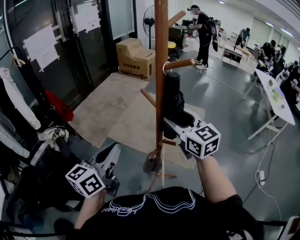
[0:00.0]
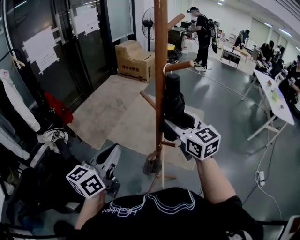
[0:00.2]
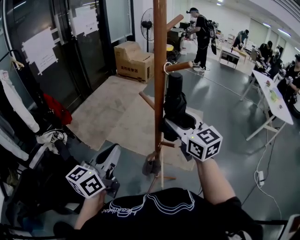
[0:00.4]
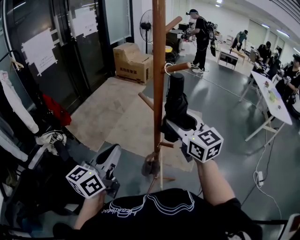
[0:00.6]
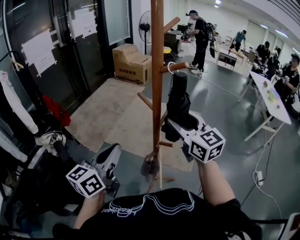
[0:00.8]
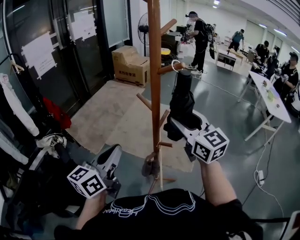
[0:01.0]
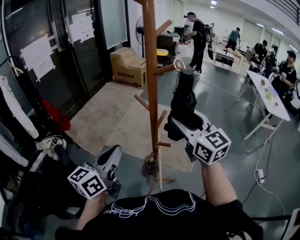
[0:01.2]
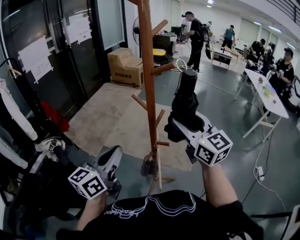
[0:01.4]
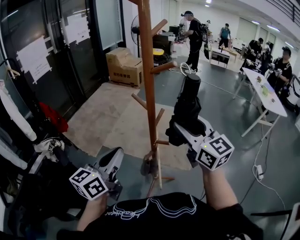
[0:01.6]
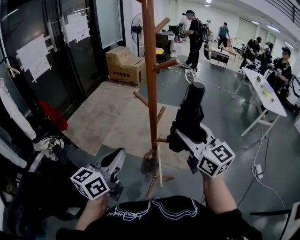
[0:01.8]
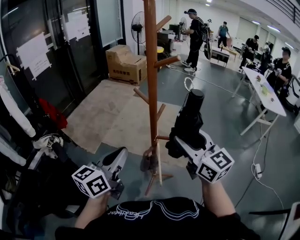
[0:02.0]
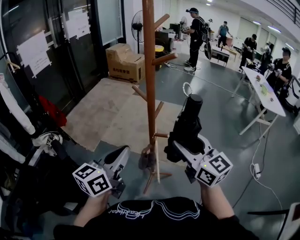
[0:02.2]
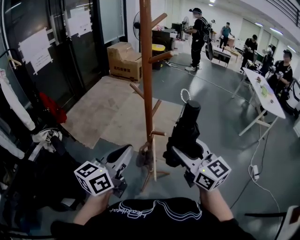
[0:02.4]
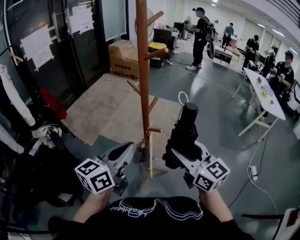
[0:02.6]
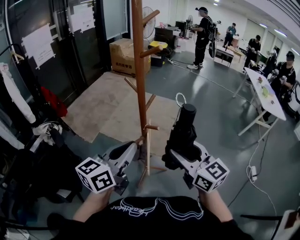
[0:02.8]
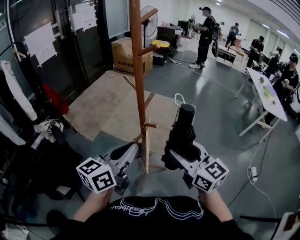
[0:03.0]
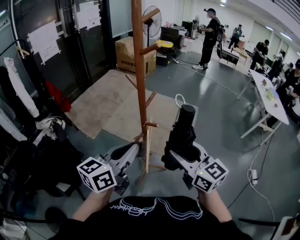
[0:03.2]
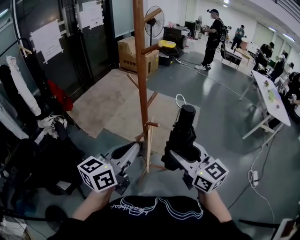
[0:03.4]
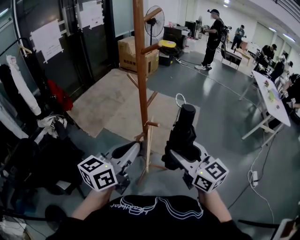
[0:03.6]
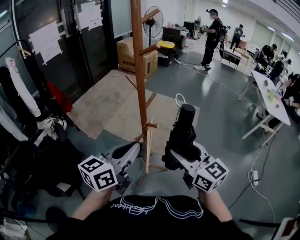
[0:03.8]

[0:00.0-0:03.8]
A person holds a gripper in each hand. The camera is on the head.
0.0 to 1.2 s: The right gripper shifts some 5 cm upward.
1.2 to 2.6 s: The left gripper shifts roughly 10 cm to the right and backward. Meanwhile the right gripper heads backward and downward, covering about 15 cm.
2.6 to 3.8 s: The grippers make only small movements.

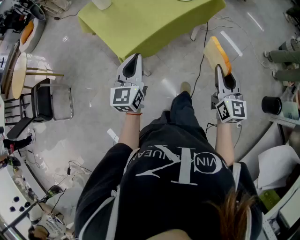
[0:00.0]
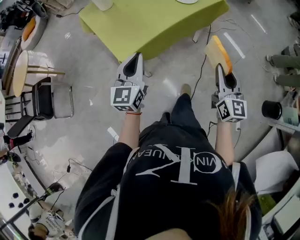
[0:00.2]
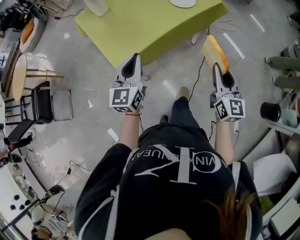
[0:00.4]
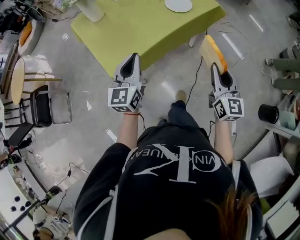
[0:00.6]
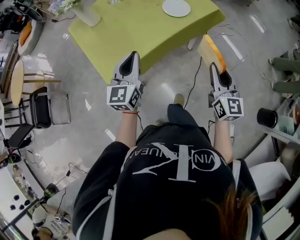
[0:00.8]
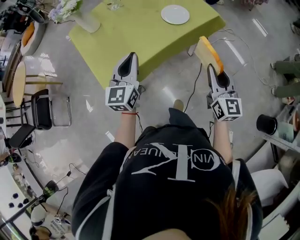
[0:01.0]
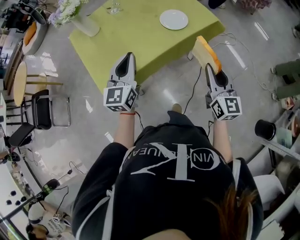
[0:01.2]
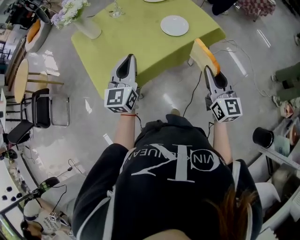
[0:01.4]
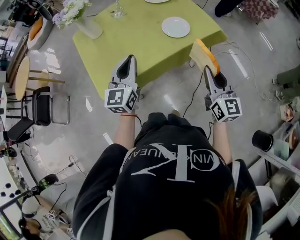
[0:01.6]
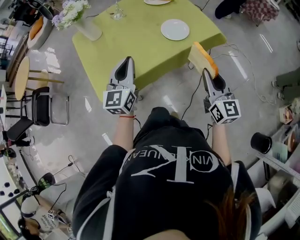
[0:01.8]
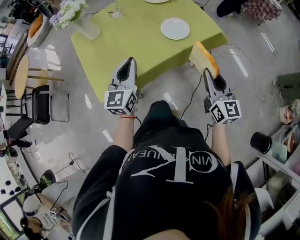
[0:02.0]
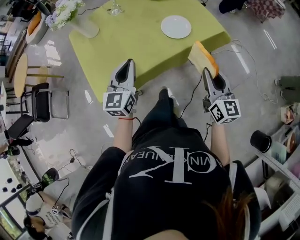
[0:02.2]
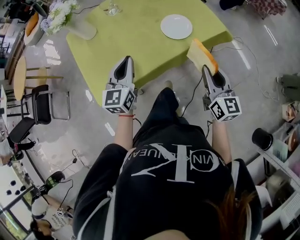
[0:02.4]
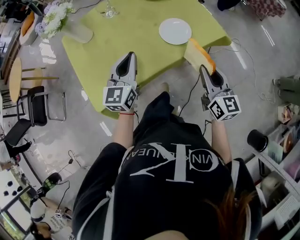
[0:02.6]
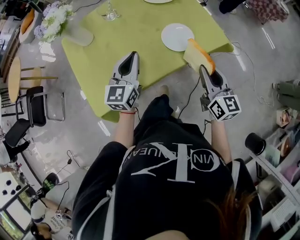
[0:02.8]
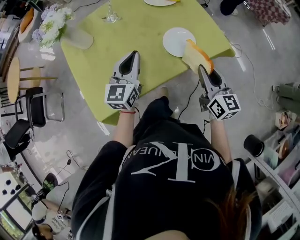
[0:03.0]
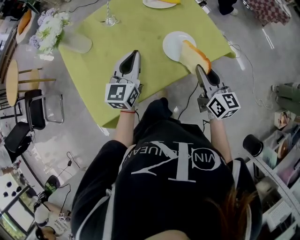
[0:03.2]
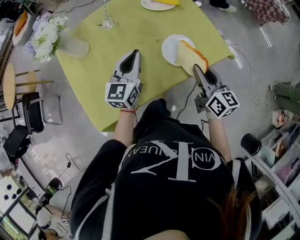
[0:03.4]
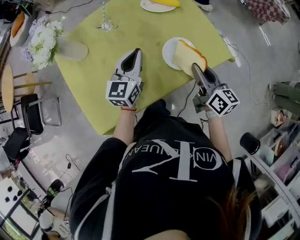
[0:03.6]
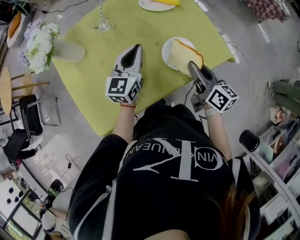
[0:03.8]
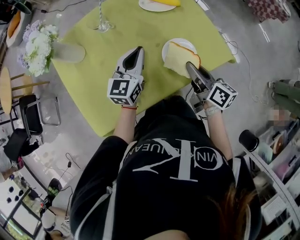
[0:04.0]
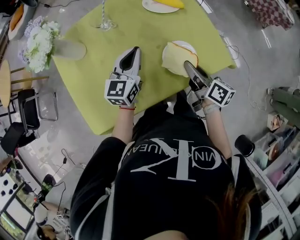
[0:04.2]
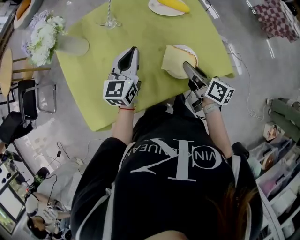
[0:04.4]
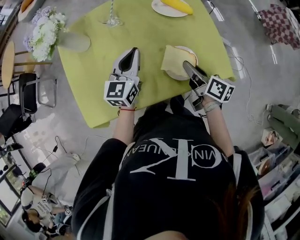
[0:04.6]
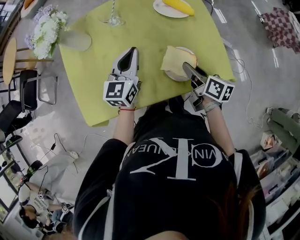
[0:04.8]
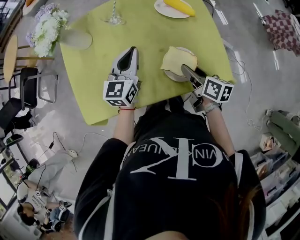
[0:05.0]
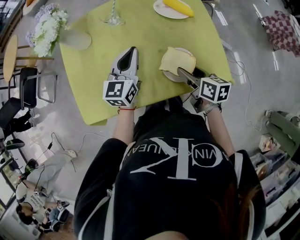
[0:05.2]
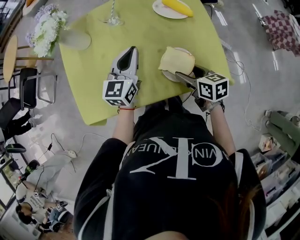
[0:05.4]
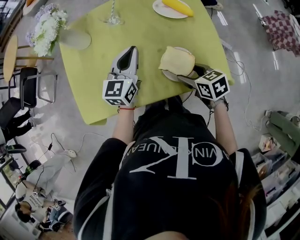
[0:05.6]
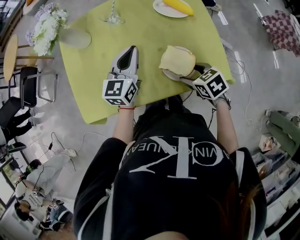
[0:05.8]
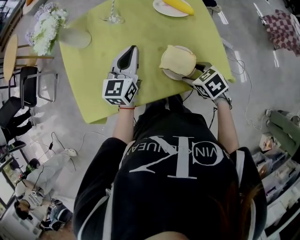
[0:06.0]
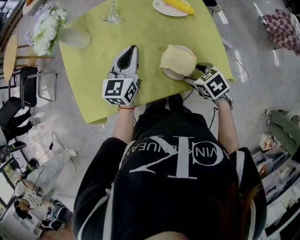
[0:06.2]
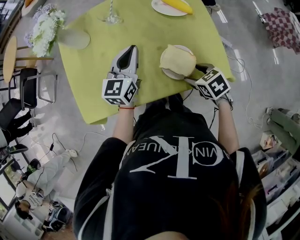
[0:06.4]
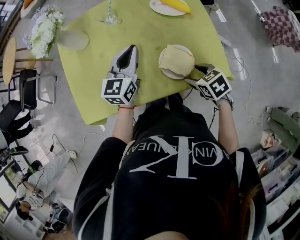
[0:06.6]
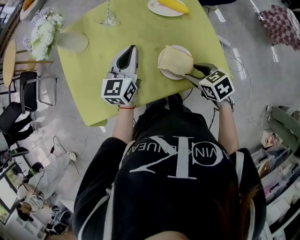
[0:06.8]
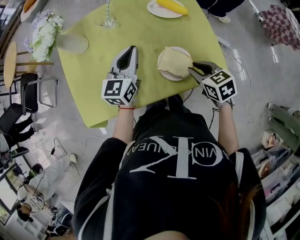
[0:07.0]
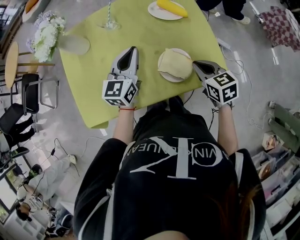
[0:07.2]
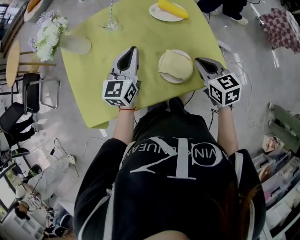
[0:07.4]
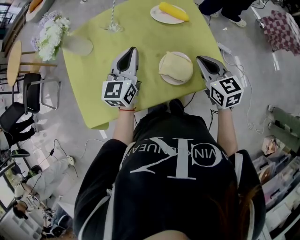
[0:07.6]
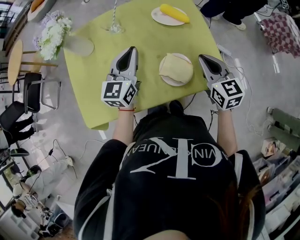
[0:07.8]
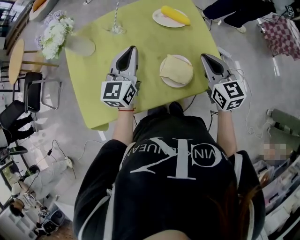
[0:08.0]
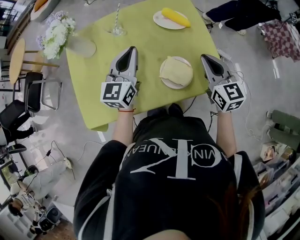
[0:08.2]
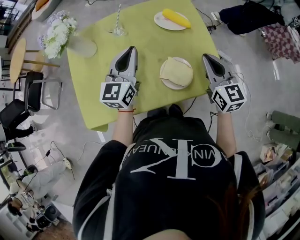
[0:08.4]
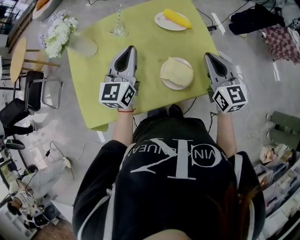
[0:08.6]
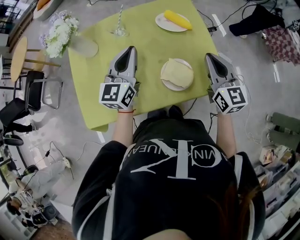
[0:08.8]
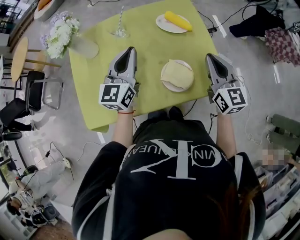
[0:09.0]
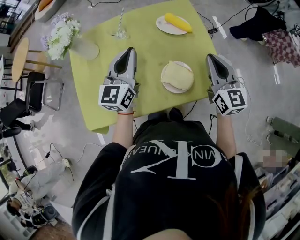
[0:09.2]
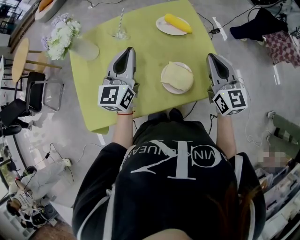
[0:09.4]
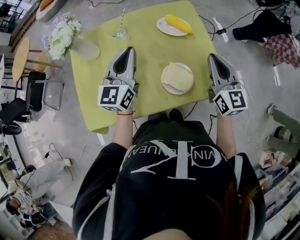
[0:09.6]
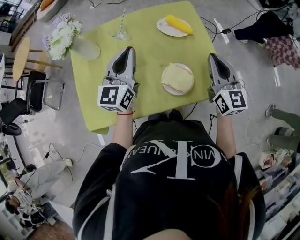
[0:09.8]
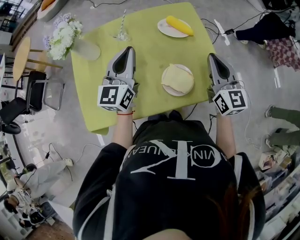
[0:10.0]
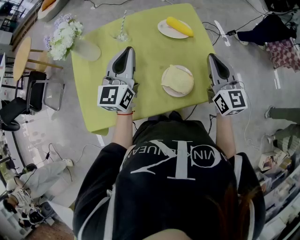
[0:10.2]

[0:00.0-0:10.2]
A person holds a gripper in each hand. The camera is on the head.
0.0 to 1.4 s: Both grippers move forward, about 25 cm.
1.4 to 3.0 s: The two grippers go about 15 cm forward.
3.0 to 4.4 s: The right gripper moves forward and downward, roughly 15 cm, and swivels some 40 degrees; the left gripper moves forward, about 10 cm.
4.4 to 5.8 s: The right gripper changes place by some 5 cm, tilts its fingers roughly 40 degrees downward, and opens its fingers.
5.8 to 7.2 s: The right gripper moves upward, about 5 cm, changes its angle by roughly 20 degrees, and closes up.
7.2 to 8.8 s: The left gripper heads upward, covering some 5 cm, while the right gripper heads upward, covering about 10 cm, and angles its fingers upward, by approximately 30 degrees.
8.8 to 10.2 s: There are only small adjustments of the grippers.

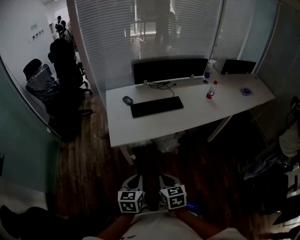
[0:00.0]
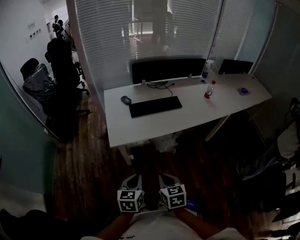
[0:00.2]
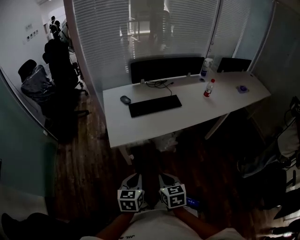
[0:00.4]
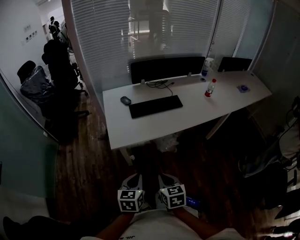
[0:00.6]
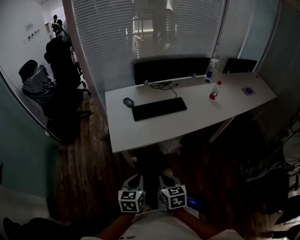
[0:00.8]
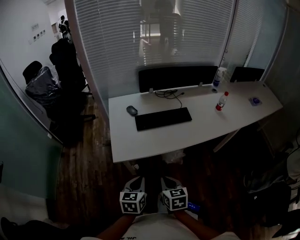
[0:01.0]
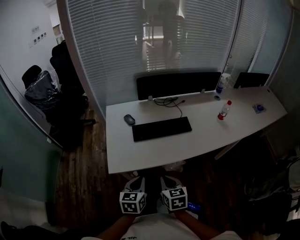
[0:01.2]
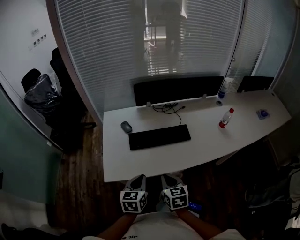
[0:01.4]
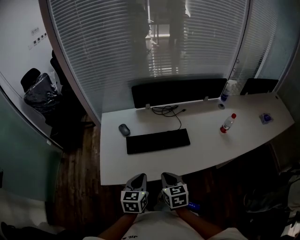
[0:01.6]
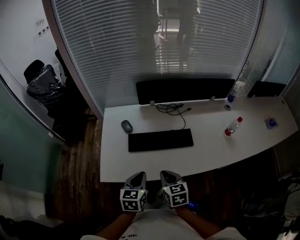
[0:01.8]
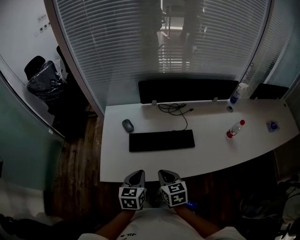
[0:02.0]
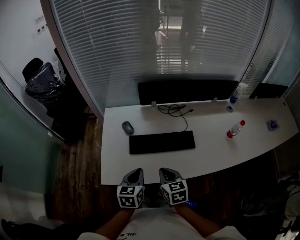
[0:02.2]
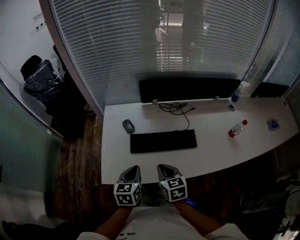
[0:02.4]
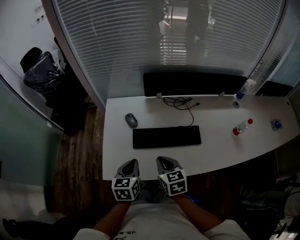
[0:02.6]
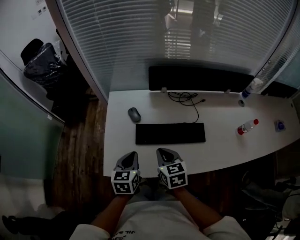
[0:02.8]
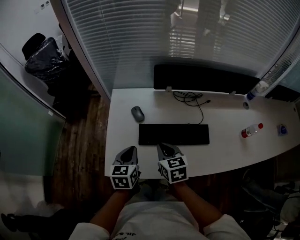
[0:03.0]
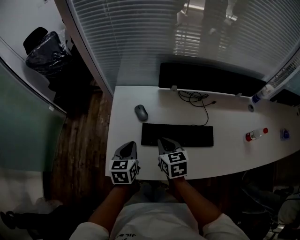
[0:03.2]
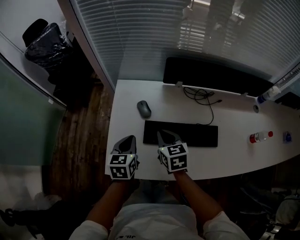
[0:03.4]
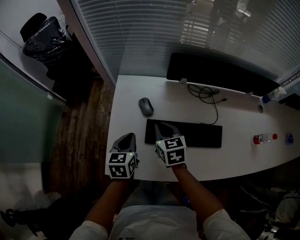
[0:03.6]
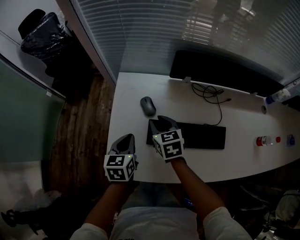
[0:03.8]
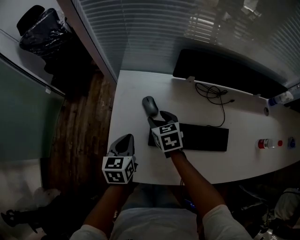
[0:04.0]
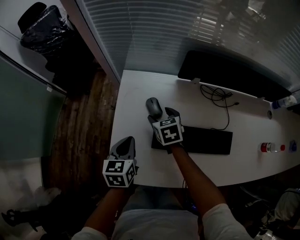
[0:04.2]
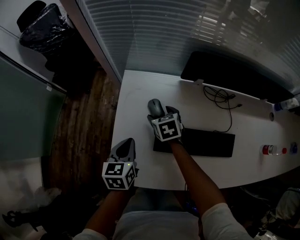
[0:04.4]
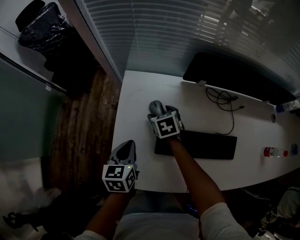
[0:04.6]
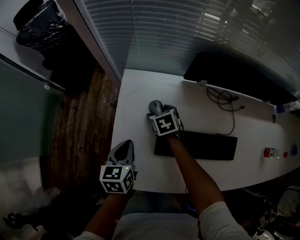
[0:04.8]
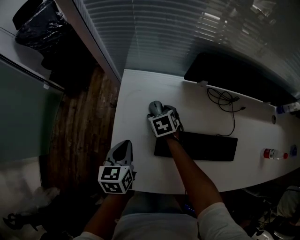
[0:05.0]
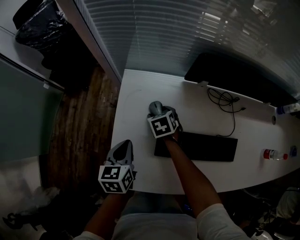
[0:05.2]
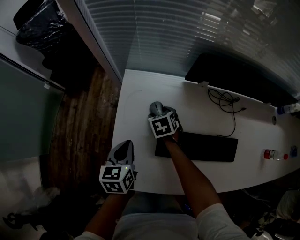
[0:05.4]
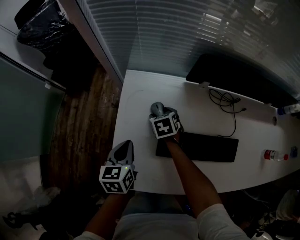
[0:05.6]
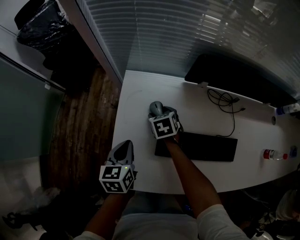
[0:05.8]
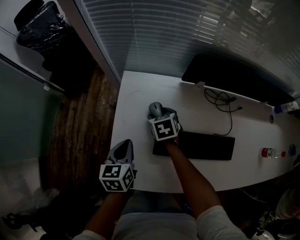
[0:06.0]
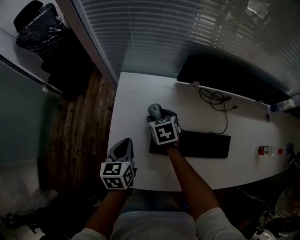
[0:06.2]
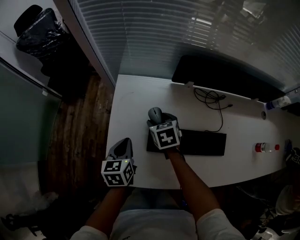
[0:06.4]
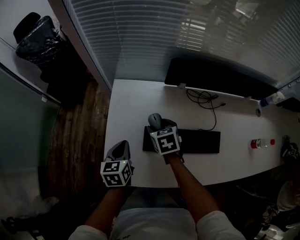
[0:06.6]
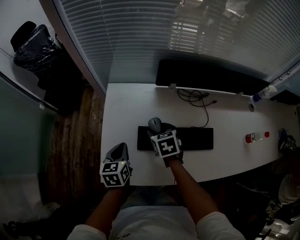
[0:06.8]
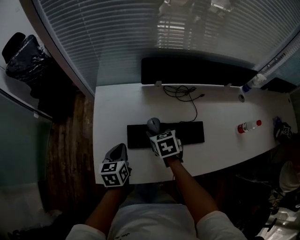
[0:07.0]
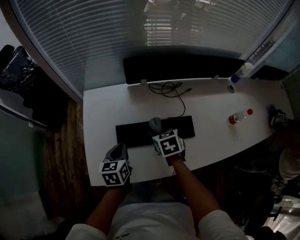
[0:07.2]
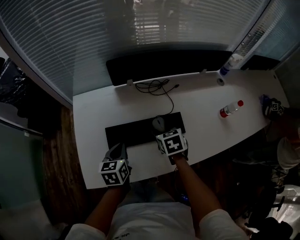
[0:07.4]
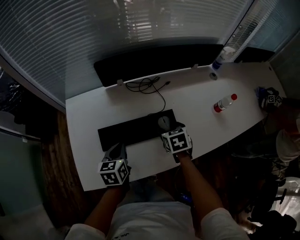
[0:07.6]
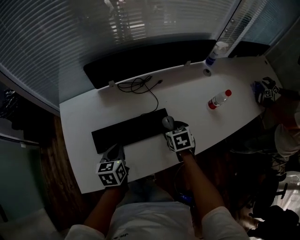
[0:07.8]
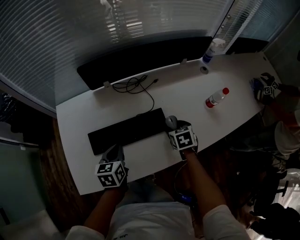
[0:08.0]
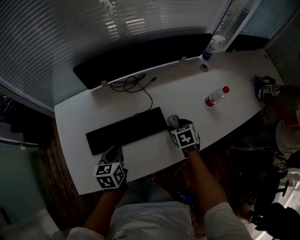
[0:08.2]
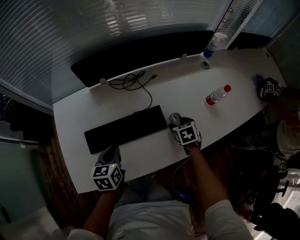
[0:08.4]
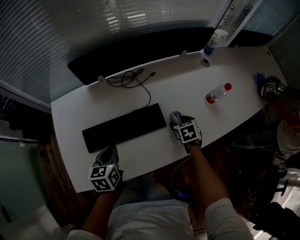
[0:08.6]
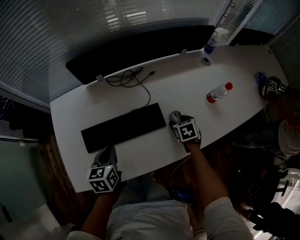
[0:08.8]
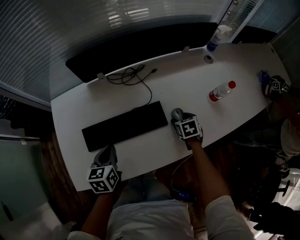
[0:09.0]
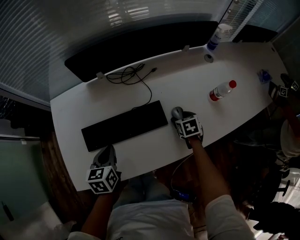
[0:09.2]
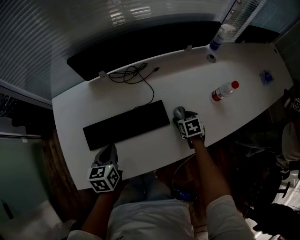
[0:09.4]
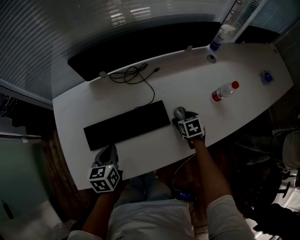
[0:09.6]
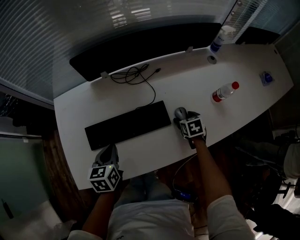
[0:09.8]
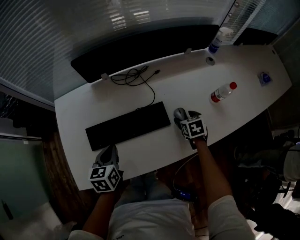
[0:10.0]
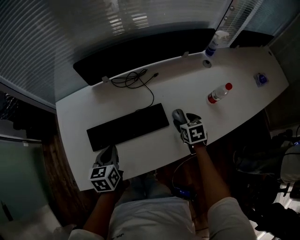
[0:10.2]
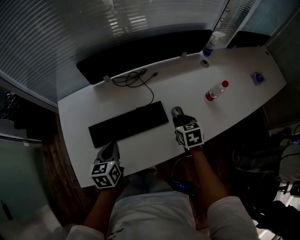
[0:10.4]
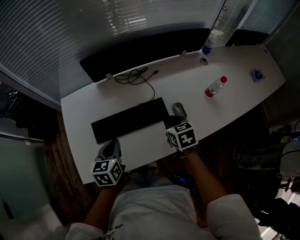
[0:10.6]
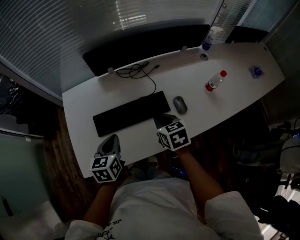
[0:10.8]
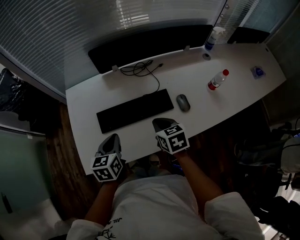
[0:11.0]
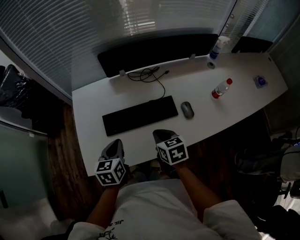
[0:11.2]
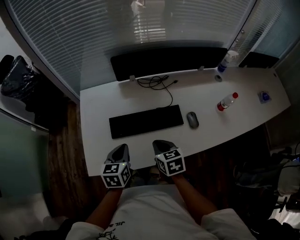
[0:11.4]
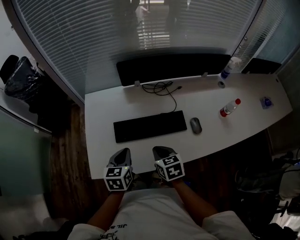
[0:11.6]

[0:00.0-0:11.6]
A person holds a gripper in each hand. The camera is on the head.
0.0 to 1.4 s: Both grippers travel together forward, approximately 30 cm.
1.4 to 2.8 s: Both grippers move forward, roughly 20 cm.
2.8 to 4.4 s: The left gripper shifts roughly 20 cm forward, to the left and downward; the right gripper is displaced forward and downward by roughly 30 cm, swivels about 20 degrees, and opens.
4.4 to 5.8 s: The grippers move only a little.
5.8 to 7.2 s: The right gripper travels to the right, backward and upward by approximately 30 cm, while the left gripper is displaced to the right and backward by approximately 15 cm.
7.2 to 8.8 s: The left gripper goes some 15 cm to the right; the right gripper shifts about 30 cm to the right.
8.8 to 10.2 s: The right gripper travels upward by some 5 cm.
10.2 to 11.6 s: The right gripper heads to the left and backward, covering some 30 cm, and closes up. The left gripper is displaced backward and to the left by about 10 cm.
